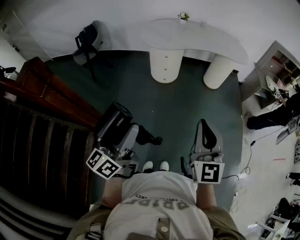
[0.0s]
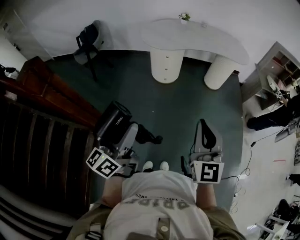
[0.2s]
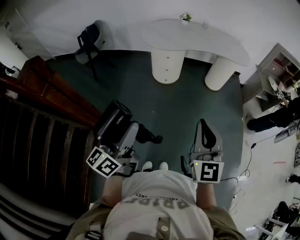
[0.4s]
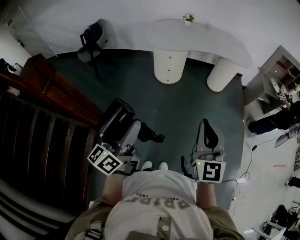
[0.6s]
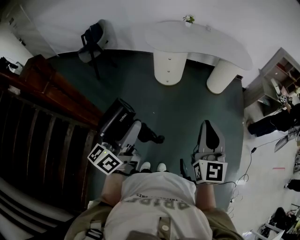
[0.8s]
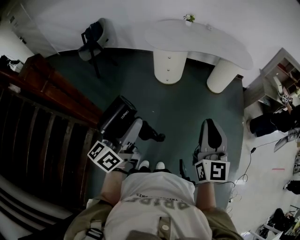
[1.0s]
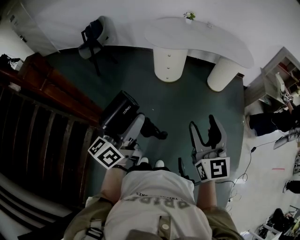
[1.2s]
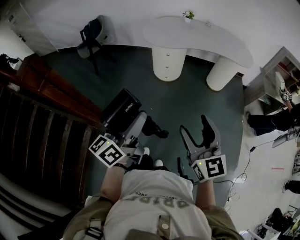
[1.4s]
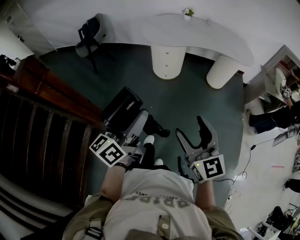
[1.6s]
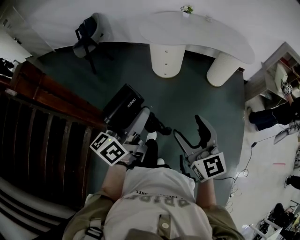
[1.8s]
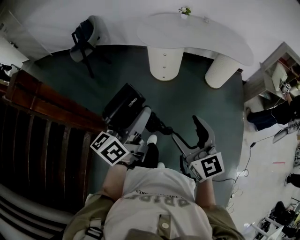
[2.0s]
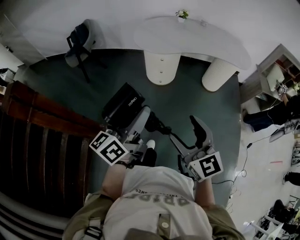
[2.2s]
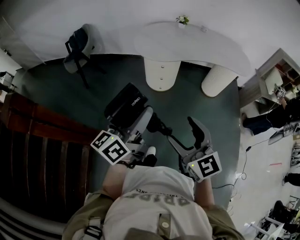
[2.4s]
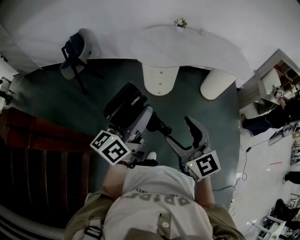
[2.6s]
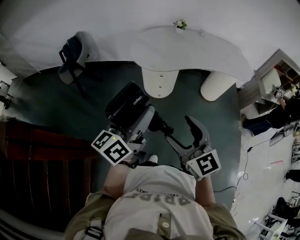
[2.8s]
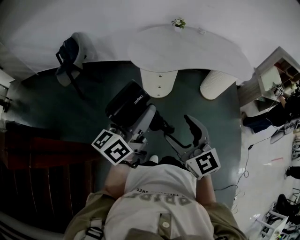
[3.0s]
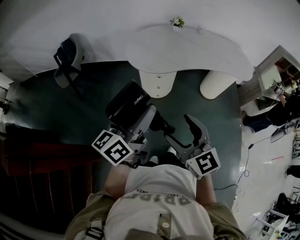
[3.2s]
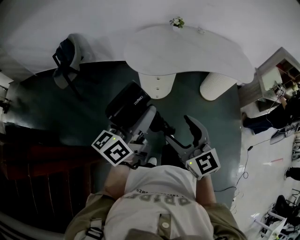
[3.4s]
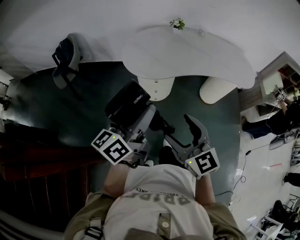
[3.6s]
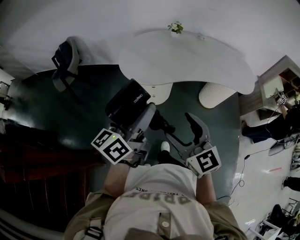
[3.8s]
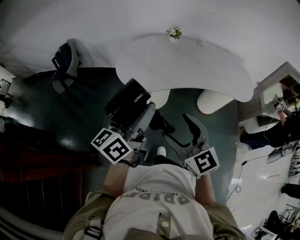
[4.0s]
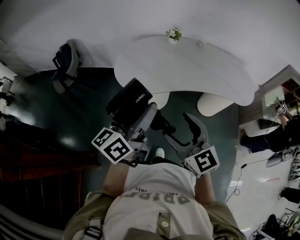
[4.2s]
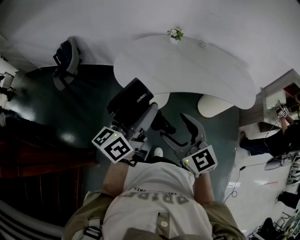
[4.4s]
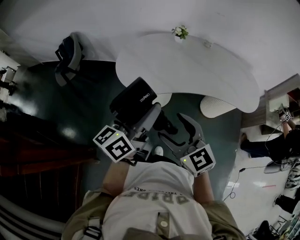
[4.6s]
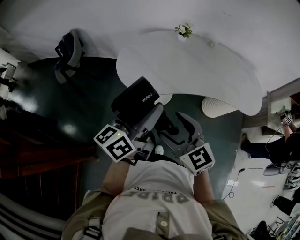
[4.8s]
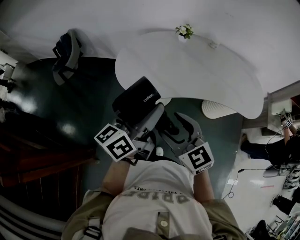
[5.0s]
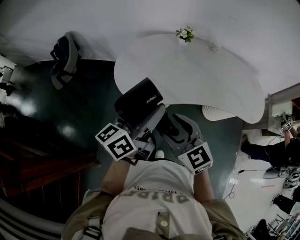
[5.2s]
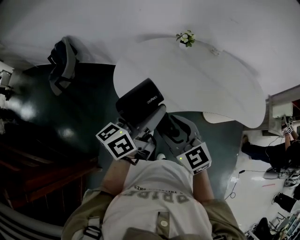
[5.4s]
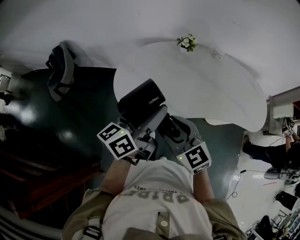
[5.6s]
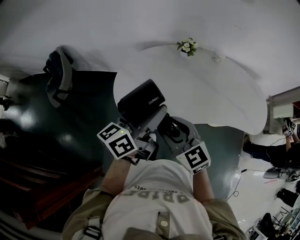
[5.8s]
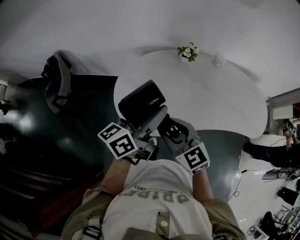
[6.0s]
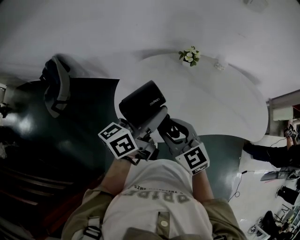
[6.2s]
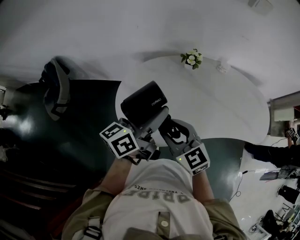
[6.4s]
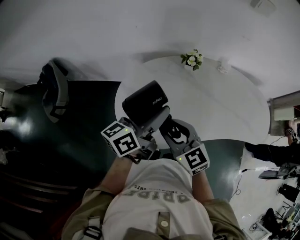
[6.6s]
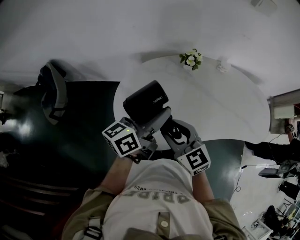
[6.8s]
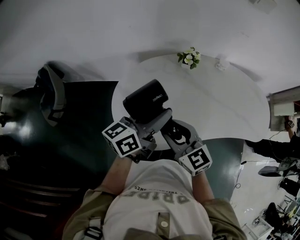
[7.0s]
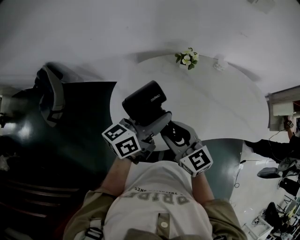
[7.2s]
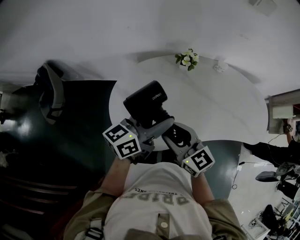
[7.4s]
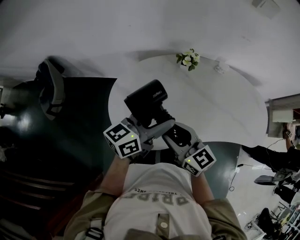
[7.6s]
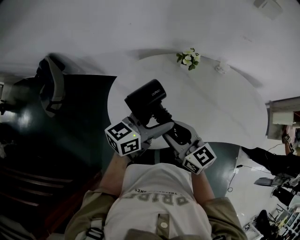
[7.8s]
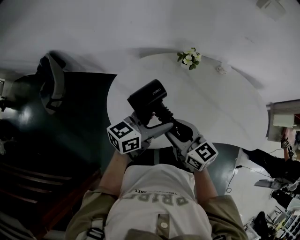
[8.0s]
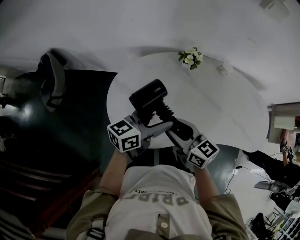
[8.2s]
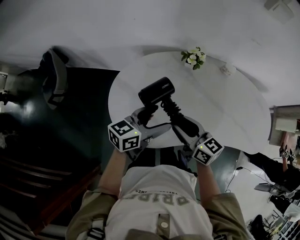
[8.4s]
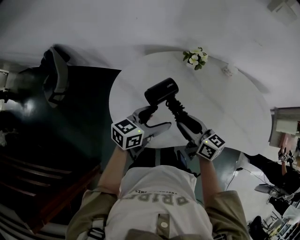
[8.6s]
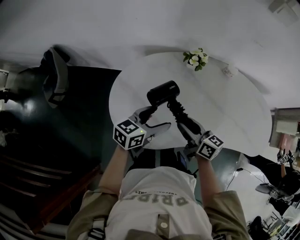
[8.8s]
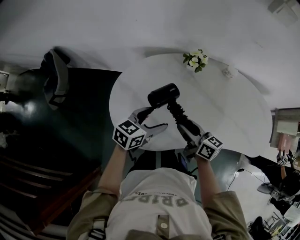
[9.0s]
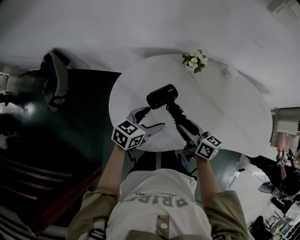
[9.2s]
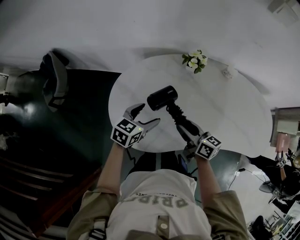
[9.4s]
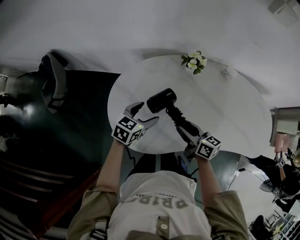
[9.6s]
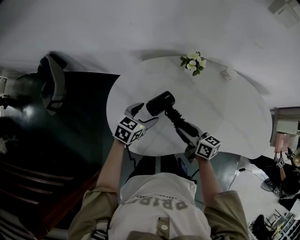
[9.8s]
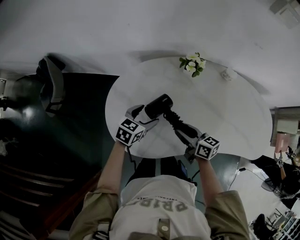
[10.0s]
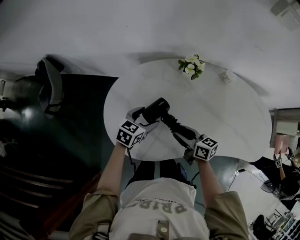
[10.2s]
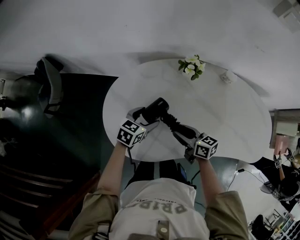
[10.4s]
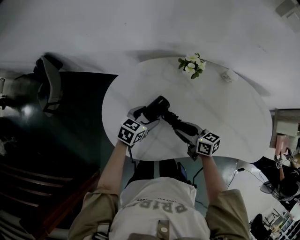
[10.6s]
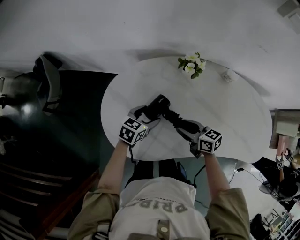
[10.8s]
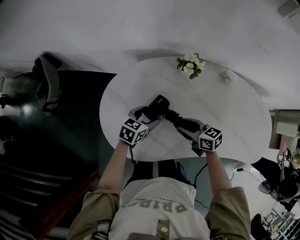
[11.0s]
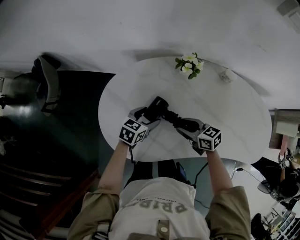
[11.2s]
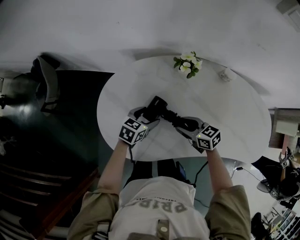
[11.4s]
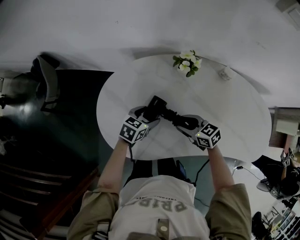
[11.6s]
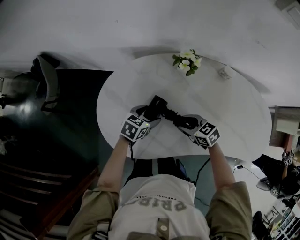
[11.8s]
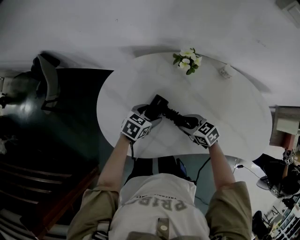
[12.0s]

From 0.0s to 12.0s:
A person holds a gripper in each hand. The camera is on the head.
From 0.0s to 1.6s: The right gripper goes roughly 5 cm forward, changes its angle by about 30 degrees, and opens. Meanwhile the left gripper is displaced forward and to the right by roughly 10 cm.
From 1.6s to 3.0s: The left gripper travels forward by approximately 25 cm. The right gripper is displaced forward and to the left by about 25 cm.
From 3.0s to 4.4s: The grippers both shift forward and to the right by about 25 cm.
From 4.4s to 6.0s: The two grippers go roughly 30 cm forward. The right gripper closes its fingers.
From 6.0s to 7.6s: The two grippers go some 10 cm forward. The left gripper opens.
From 7.6s to 9.0s: The right gripper shifts about 15 cm downward and to the right, and changes its angle by some 30 degrees, while the left gripper moves downward, approximately 15 cm, and rotates some 30 degrees.
From 9.0s to 10.4s: The left gripper goes approximately 10 cm downward and forward; the right gripper moves downward, approximately 10 cm.
From 10.4s to 12.0s: The right gripper is displaced downward by about 5 cm, and changes its angle by some 40 degrees; the left gripper ends up roughly 5 cm from where it was.

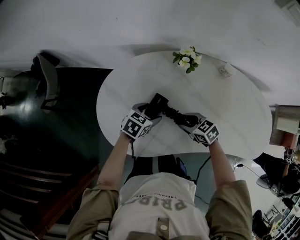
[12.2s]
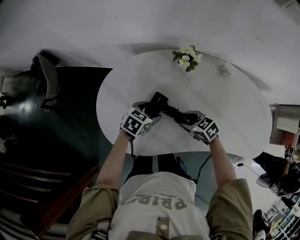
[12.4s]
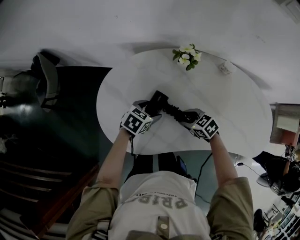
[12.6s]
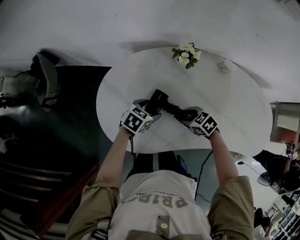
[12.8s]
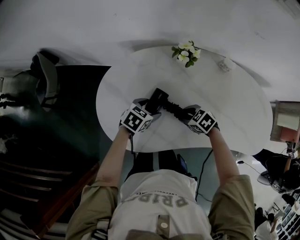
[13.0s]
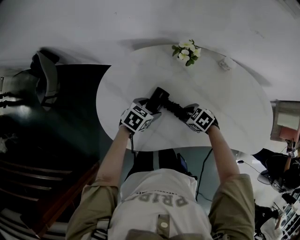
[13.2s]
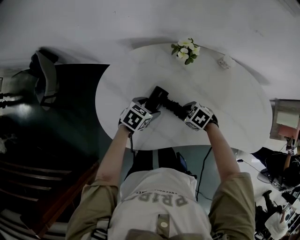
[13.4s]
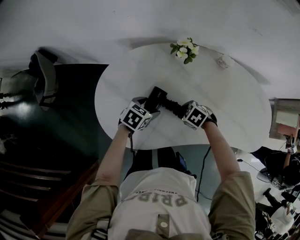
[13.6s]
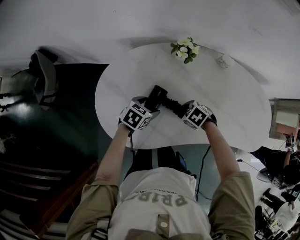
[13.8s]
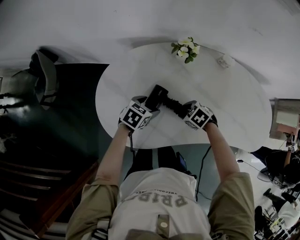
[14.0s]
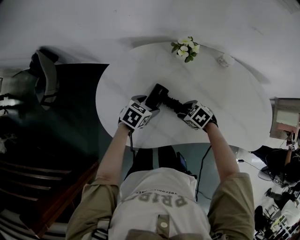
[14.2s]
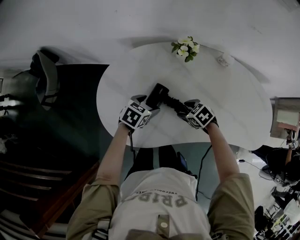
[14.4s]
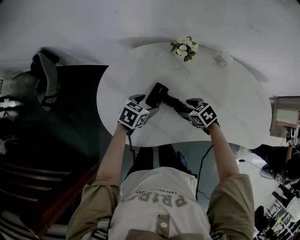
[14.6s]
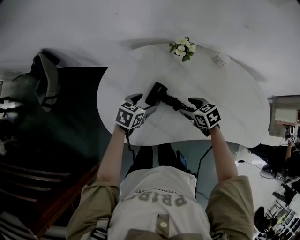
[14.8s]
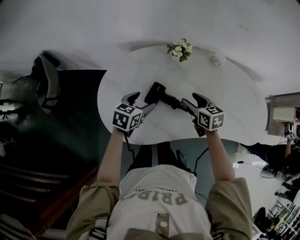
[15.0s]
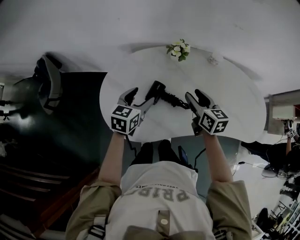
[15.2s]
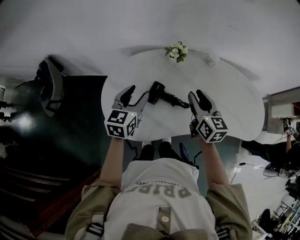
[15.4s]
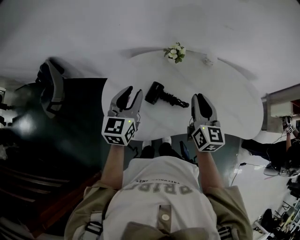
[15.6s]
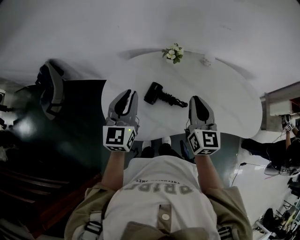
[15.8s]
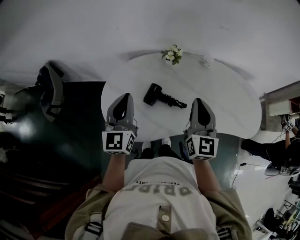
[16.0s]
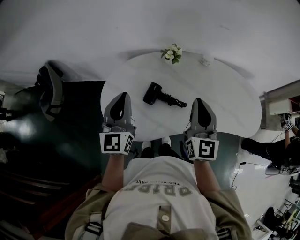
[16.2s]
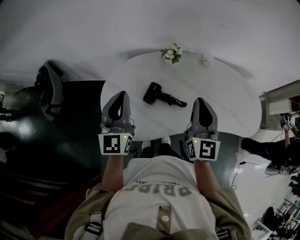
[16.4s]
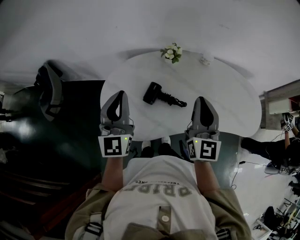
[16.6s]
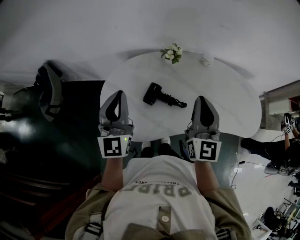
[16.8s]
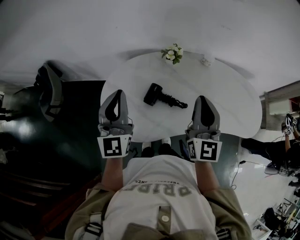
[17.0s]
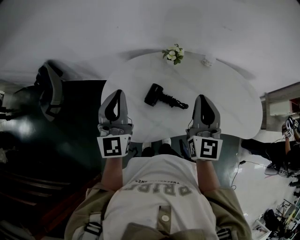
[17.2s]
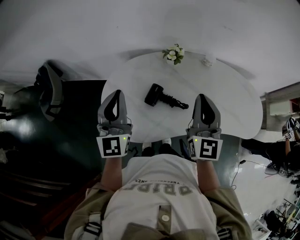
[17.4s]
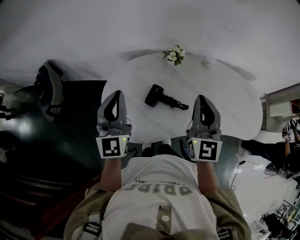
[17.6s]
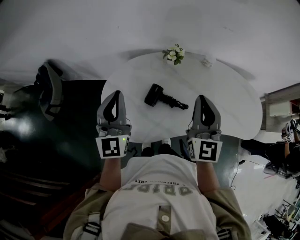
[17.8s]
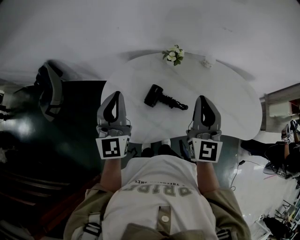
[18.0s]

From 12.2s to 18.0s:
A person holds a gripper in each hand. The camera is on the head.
From 12.2s to 13.6s: The right gripper rotates some 30 degrees.
From 13.6s to 15.0s: Both grippers travel together upward, about 10 cm. The right gripper points its fingers approximately 30 degrees further upward.
From 15.0s to 16.6s: The two grippers go roughly 25 cm upward. The left gripper tips its fingers upward by some 50 degrees, and closes its fingers. Meanwhile the right gripper angles its fingers upward, by roughly 40 degrees, and closes.
From 16.6s to 18.0s: The grippers make only small movements.

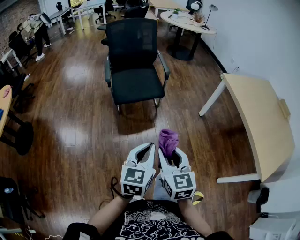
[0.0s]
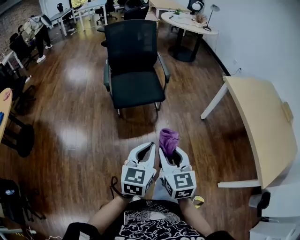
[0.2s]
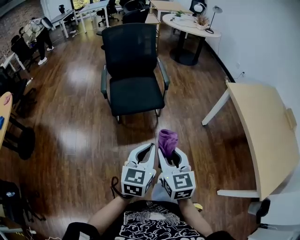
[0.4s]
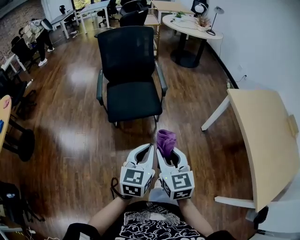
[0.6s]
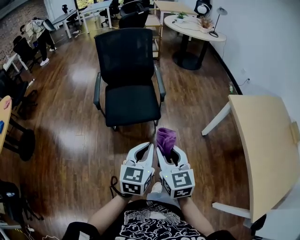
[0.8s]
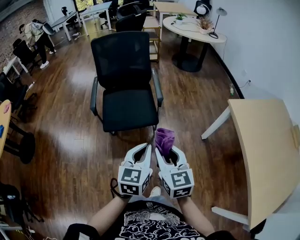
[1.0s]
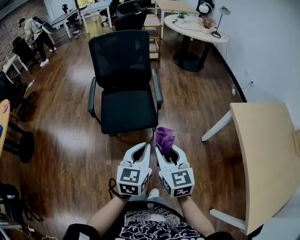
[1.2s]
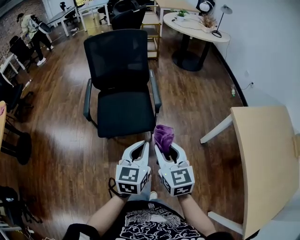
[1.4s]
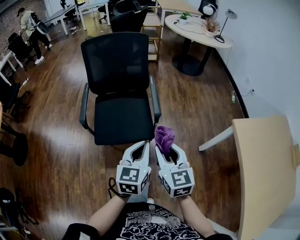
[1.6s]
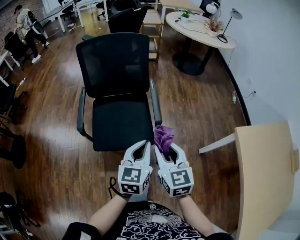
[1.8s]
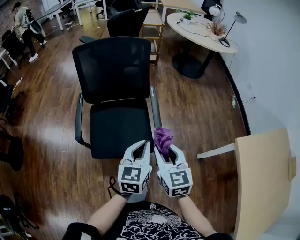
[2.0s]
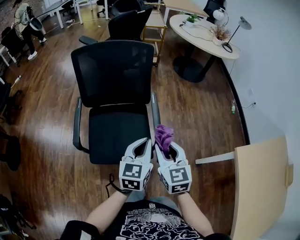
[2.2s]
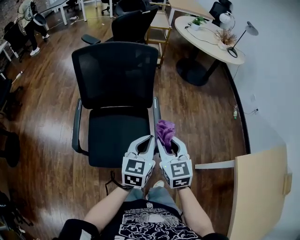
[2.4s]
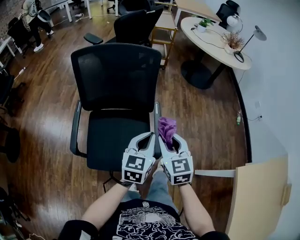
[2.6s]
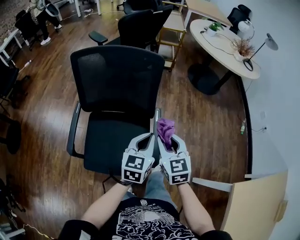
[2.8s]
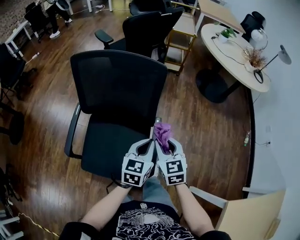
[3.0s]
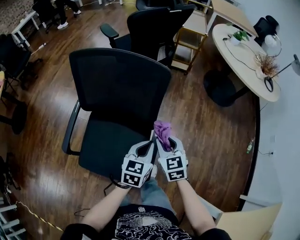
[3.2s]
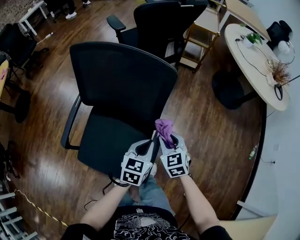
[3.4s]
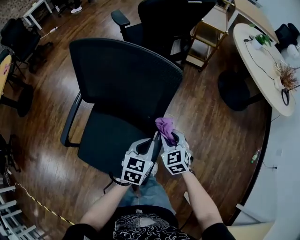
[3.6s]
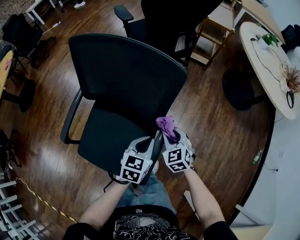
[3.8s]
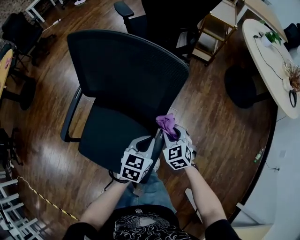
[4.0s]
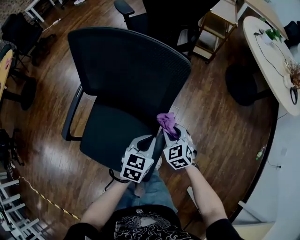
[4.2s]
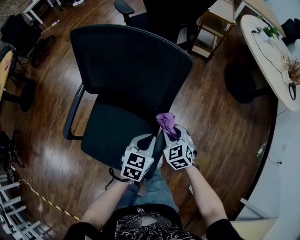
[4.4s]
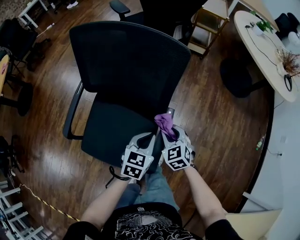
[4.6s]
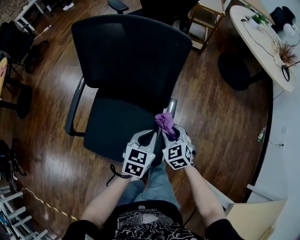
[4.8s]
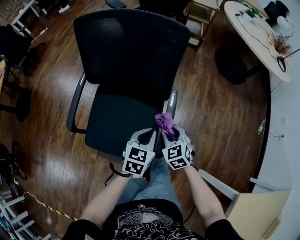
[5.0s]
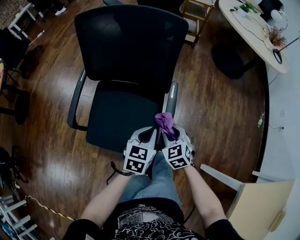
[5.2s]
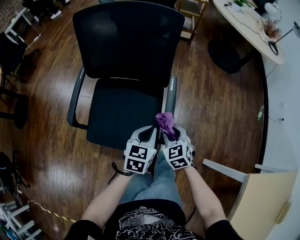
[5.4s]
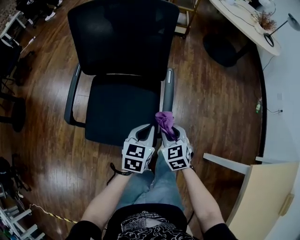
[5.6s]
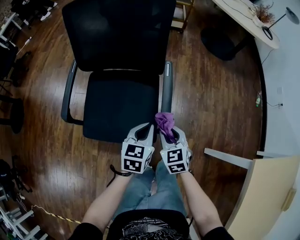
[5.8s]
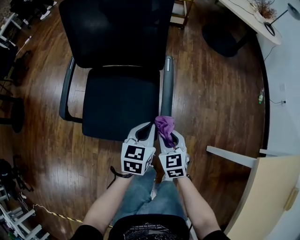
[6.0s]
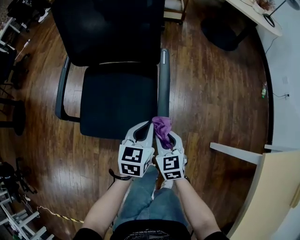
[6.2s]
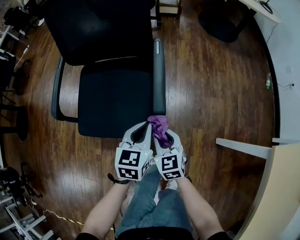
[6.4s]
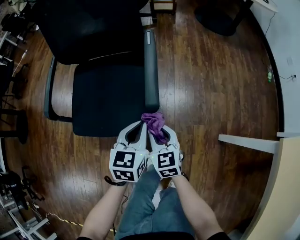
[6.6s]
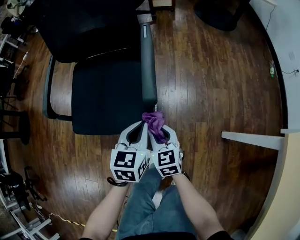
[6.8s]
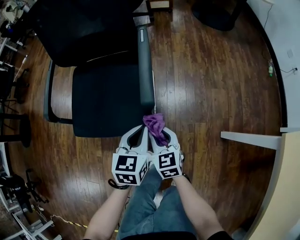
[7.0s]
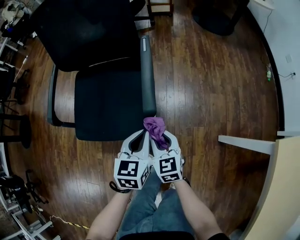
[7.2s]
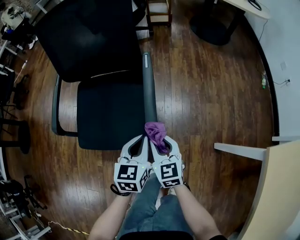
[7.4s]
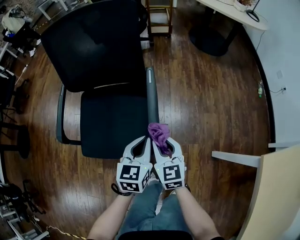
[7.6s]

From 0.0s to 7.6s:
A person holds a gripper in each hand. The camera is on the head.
From 0.0s to 1.6s: The pair of grippers is taken forward, approximately 50 cm.
From 1.6s to 3.0s: Both grippers are carried forward, about 40 cm. The right gripper changes its angle by about 20 degrees.
From 3.0s to 4.6s: The grippers both shift downward by roughly 15 cm. The right gripper swivels some 30 degrees.
From 4.6s to 6.0s: The grippers both shift backward by about 20 cm. The right gripper rotates some 30 degrees.
From 6.0s to 7.6s: The right gripper goes downward and returns, about 10 cm each way, while the left gripper moves about 10 cm downward and comes back.
